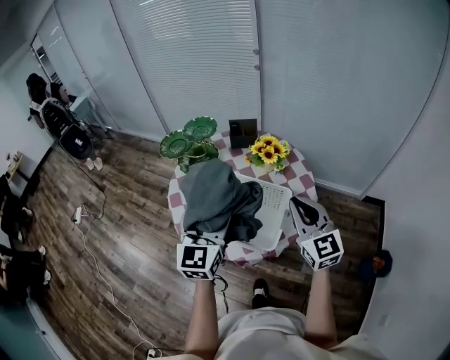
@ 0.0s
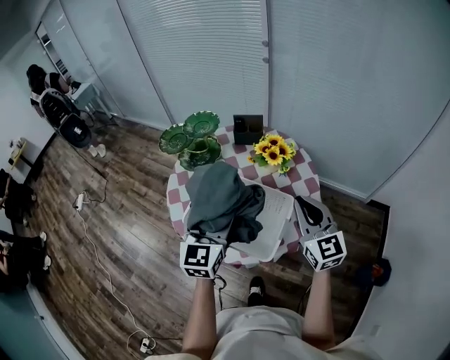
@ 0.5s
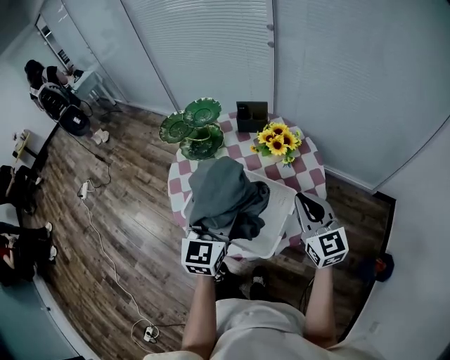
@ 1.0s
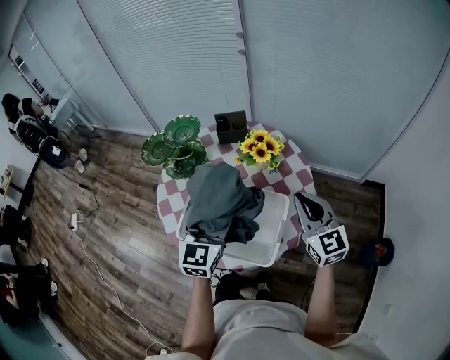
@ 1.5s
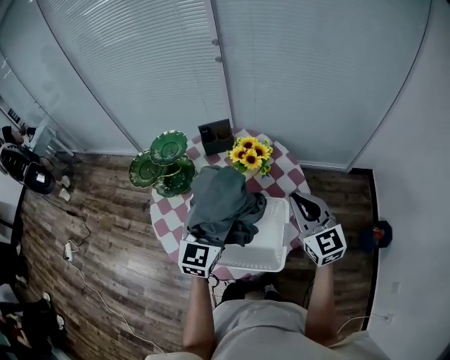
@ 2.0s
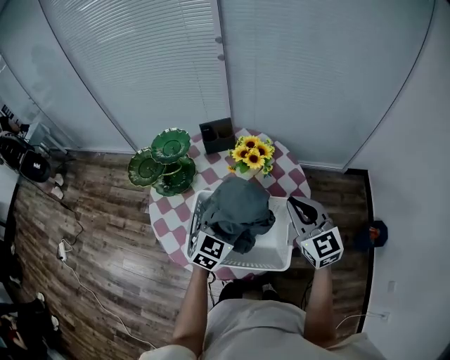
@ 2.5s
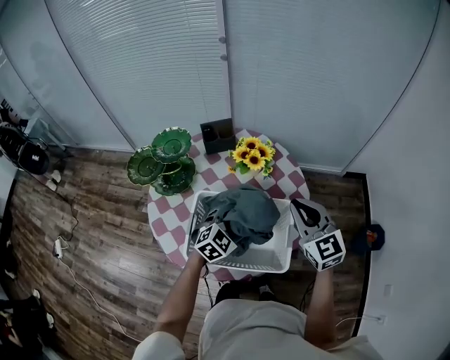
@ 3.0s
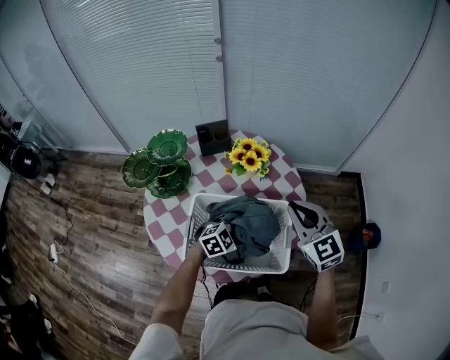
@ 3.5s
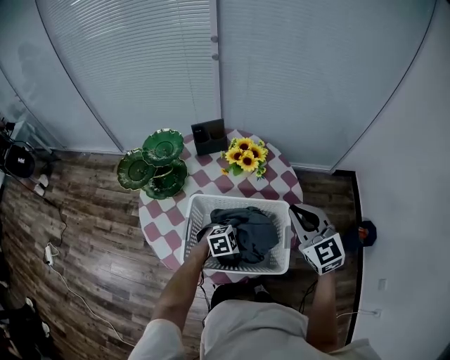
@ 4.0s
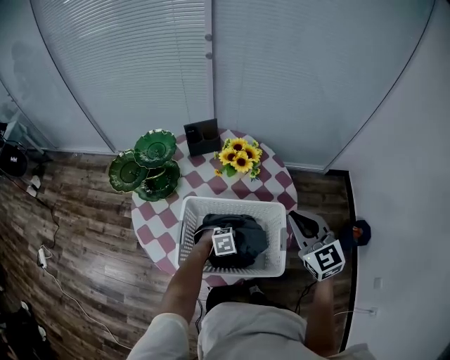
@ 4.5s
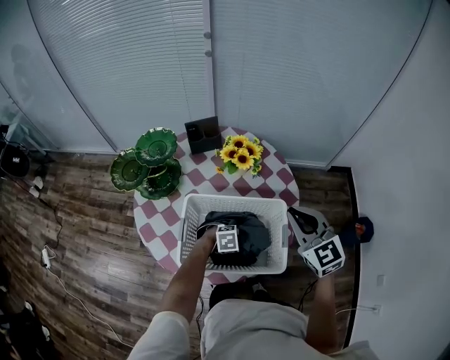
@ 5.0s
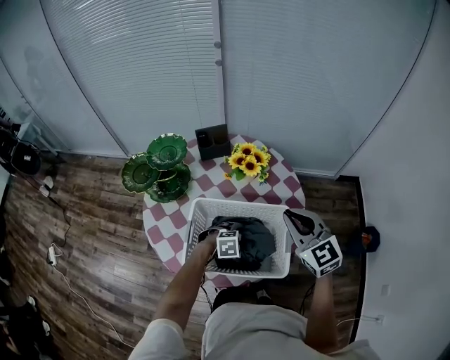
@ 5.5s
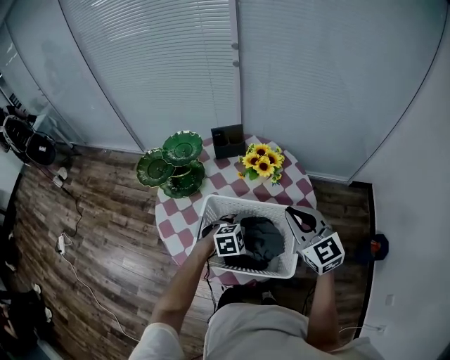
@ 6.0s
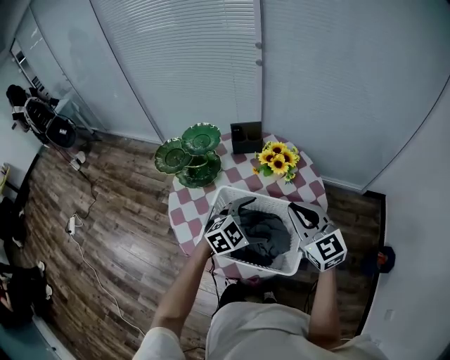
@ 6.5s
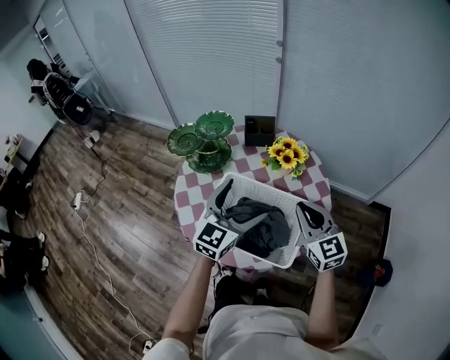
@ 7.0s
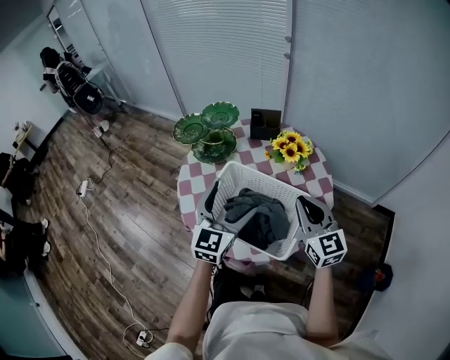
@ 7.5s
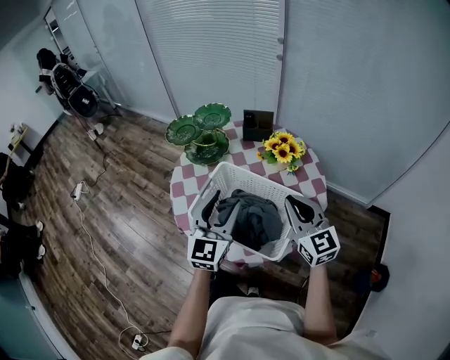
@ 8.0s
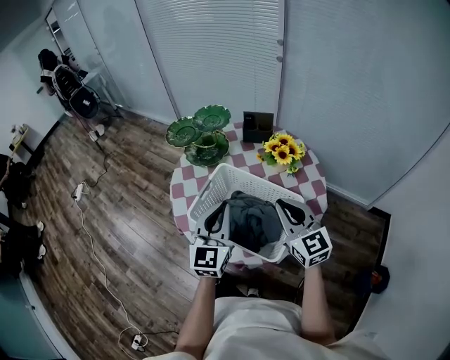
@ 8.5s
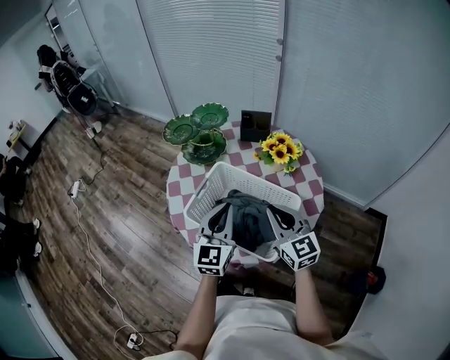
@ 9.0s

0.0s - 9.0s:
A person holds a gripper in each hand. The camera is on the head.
0.0s - 2.0s: The right gripper moves forward, approximately 10 cm. Meanwhile the left gripper goes approximately 15 cm forward and downward, and turns by approximately 20 degrees.
2.0s - 4.5s: The left gripper heads downward, covering approximately 35 cm, and points its fingers roughly 50 degrees further downward.
4.5s - 7.0s: The left gripper heads upward, covering some 35 cm, angles its fingers upward, by some 60 degrees, and opens.
7.0s - 9.0s: The left gripper heads downward and backward, covering about 5 cm, rotates approximately 30 degrees, and closes its fingers. Meanwhile the right gripper ends up some 5 cm from where it was.

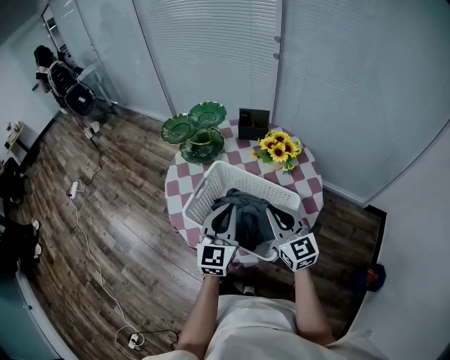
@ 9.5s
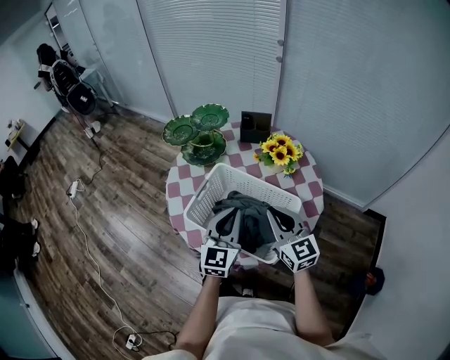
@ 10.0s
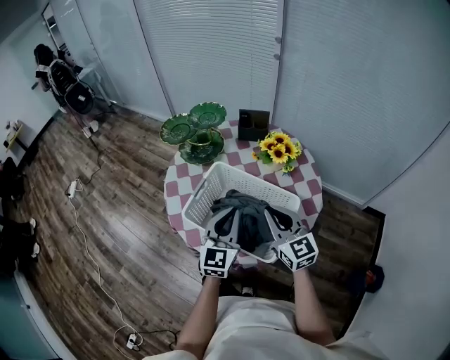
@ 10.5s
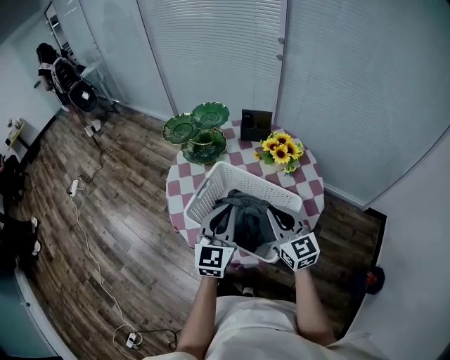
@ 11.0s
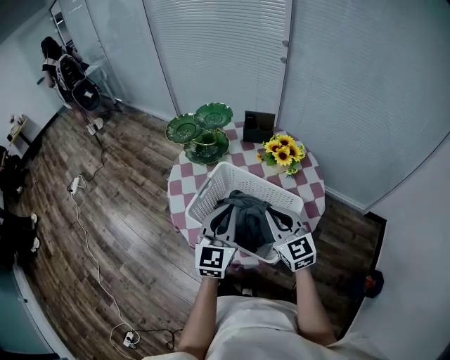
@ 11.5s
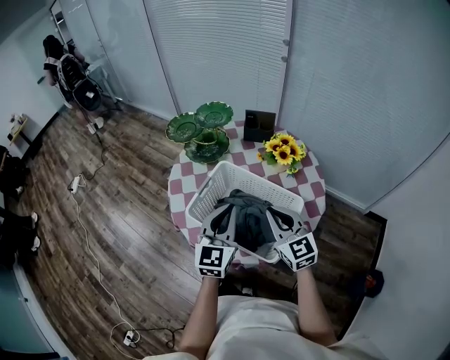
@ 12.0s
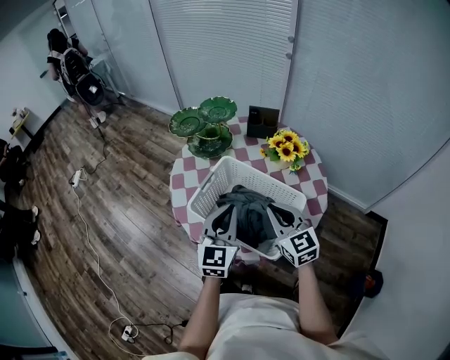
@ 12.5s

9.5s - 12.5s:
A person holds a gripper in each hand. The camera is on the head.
9.5s - 12.5s: The grippers move only a little.

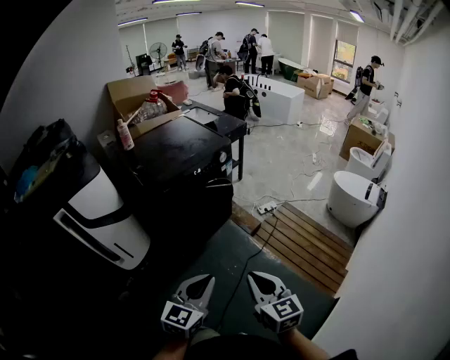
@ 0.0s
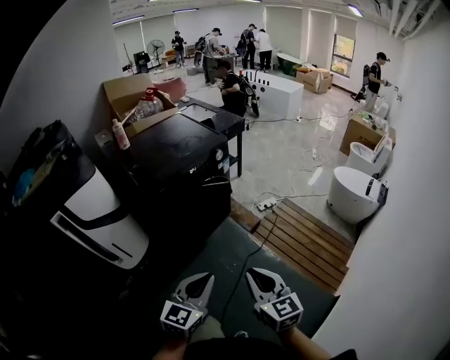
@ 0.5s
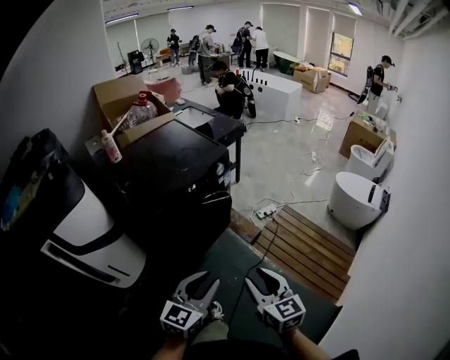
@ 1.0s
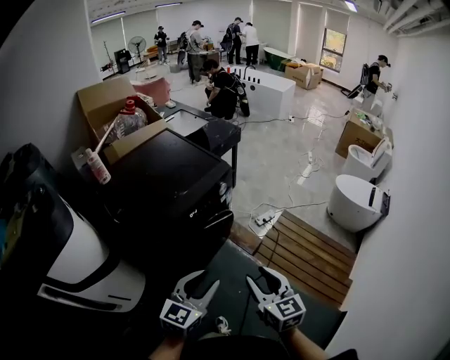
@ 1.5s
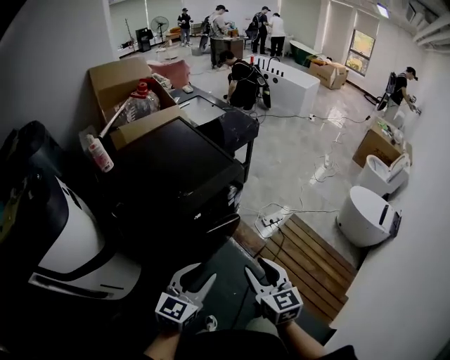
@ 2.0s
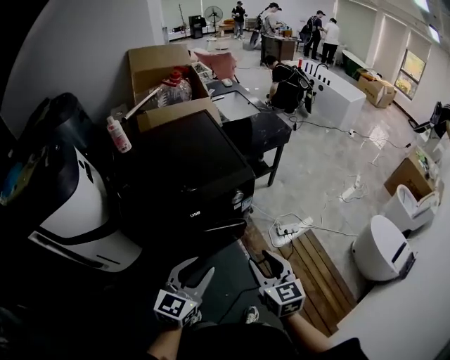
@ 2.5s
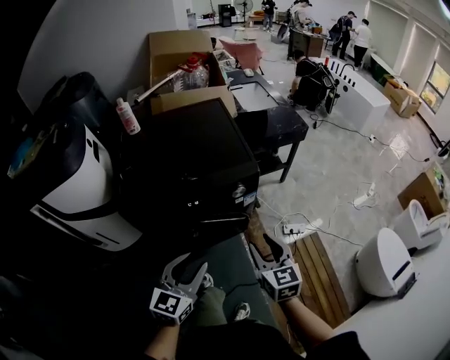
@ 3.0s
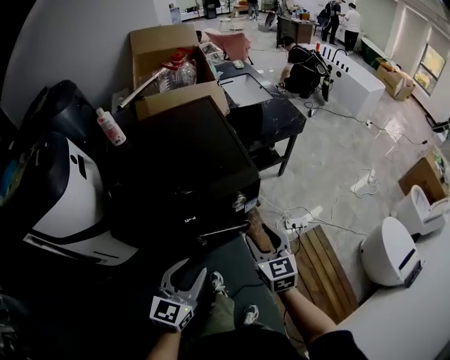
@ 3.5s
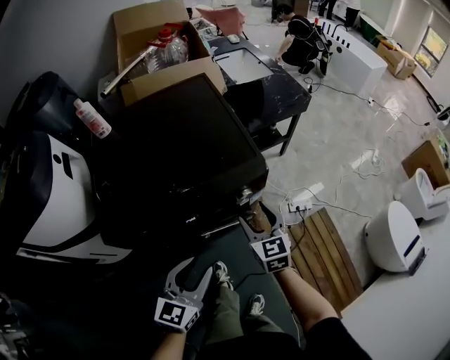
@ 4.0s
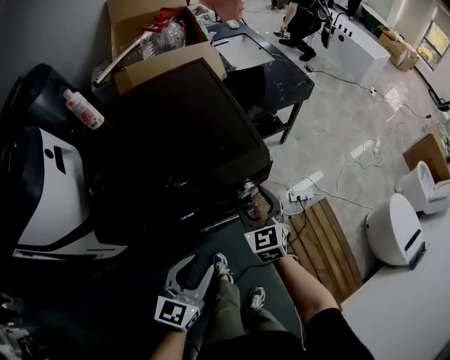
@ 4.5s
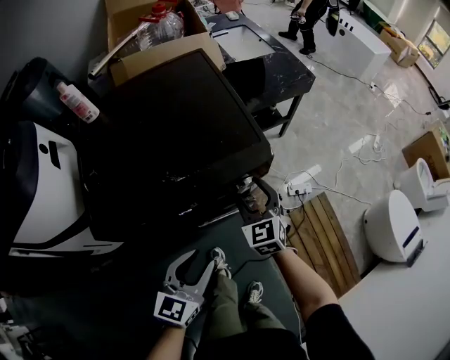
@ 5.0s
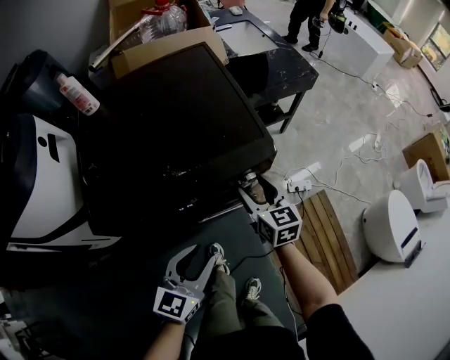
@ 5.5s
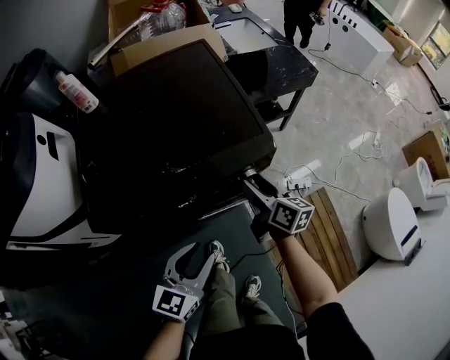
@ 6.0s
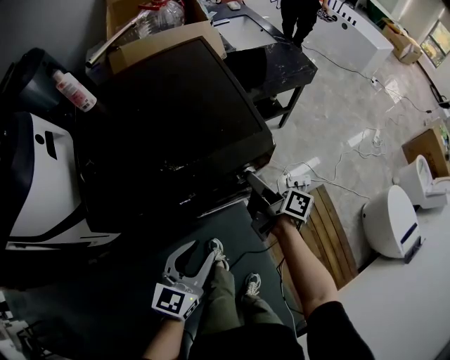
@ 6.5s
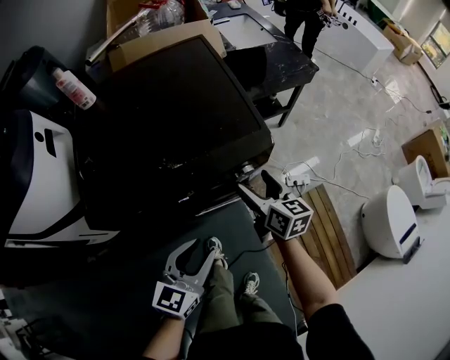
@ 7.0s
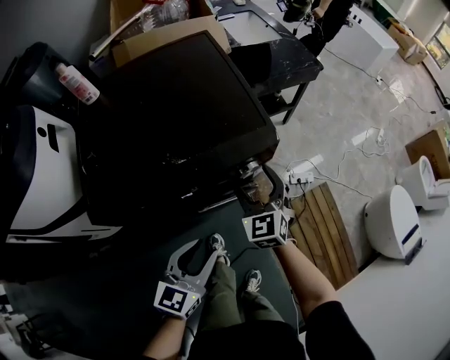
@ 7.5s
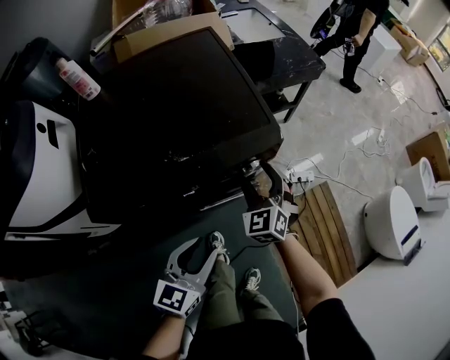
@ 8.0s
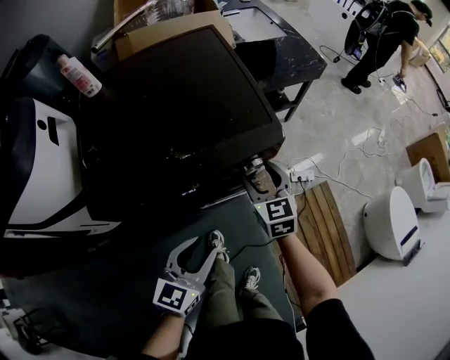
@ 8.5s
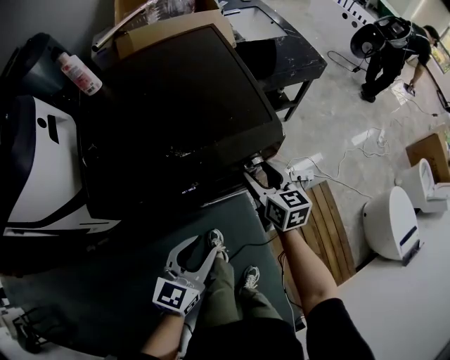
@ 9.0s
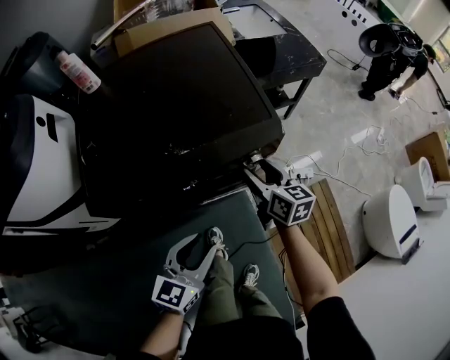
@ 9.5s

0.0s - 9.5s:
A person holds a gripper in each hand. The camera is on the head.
0.0s - 2.0s: Both grippers travel together forward, roughly 40 cm. The right gripper opens its fingers; the left gripper opens up.
2.0s - 4.0s: The right gripper moves approximately 30 cm, and swivels approximately 20 degrees. Meanwhile the left gripper shifts by approximately 15 cm, and swivels some 30 degrees.
4.0s - 5.5s: The right gripper moves some 5 cm.
5.5s - 7.5s: The right gripper turns by about 30 degrees.
7.5s - 9.5s: The right gripper twists roughly 50 degrees clockwise, seen from behind.

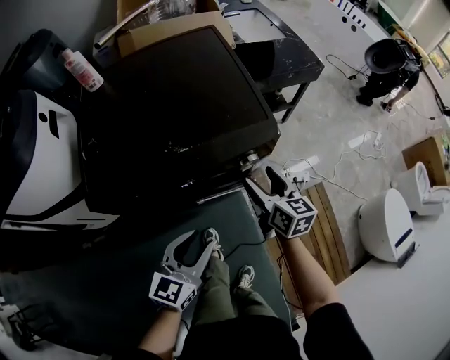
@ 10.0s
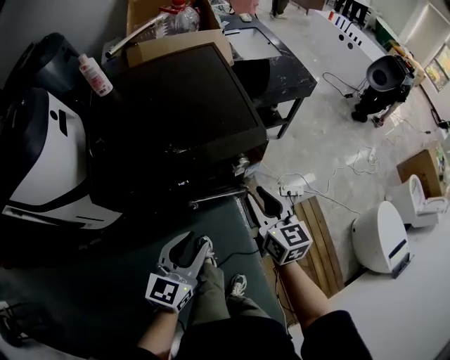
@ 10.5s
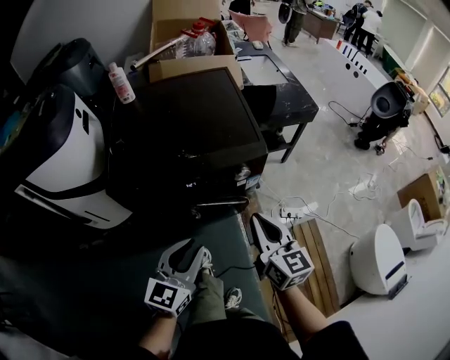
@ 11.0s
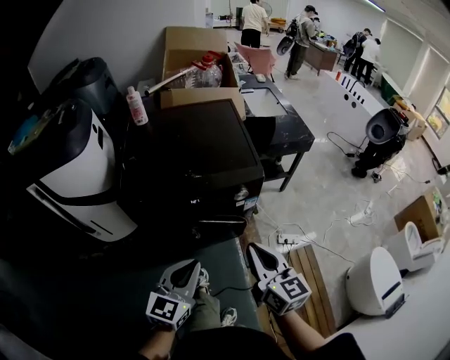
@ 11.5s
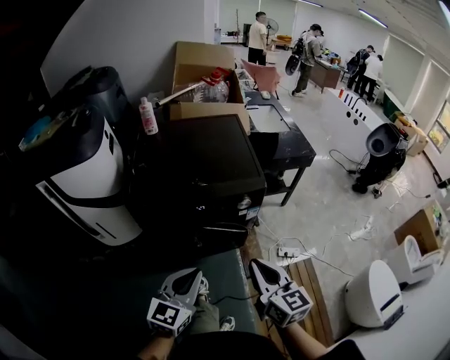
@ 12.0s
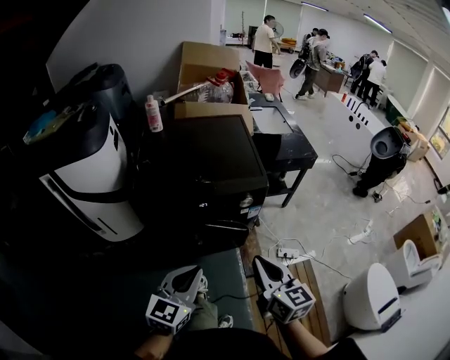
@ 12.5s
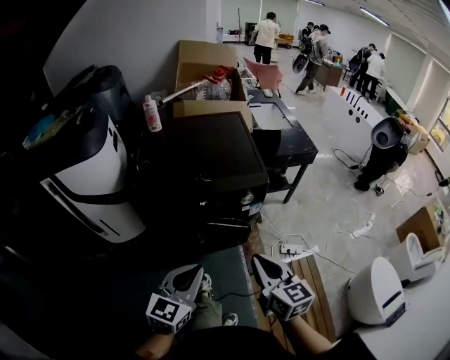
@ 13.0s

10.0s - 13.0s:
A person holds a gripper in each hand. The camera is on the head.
10.0s - 11.5s: The left gripper goes roughly 15 cm backward and upward, and closes up, while the right gripper goes roughly 30 cm backward and upward, and closes.
11.5s - 13.0s: The left gripper changes place by some 5 cm. Meanwhile the right gripper heads backward, covering about 5 cm.

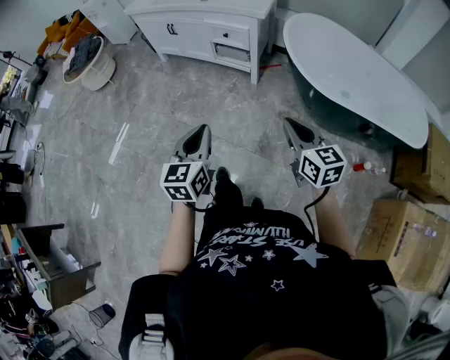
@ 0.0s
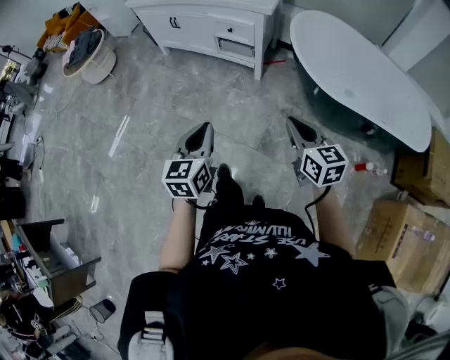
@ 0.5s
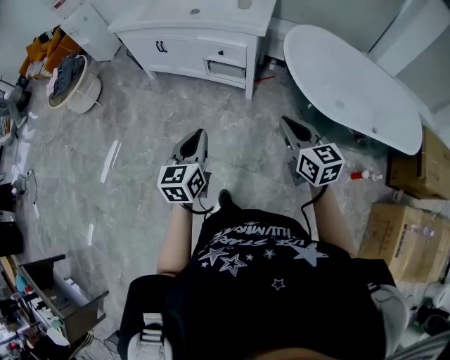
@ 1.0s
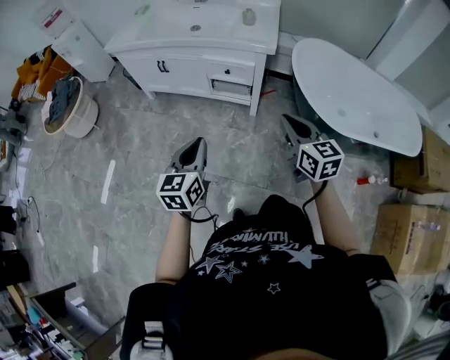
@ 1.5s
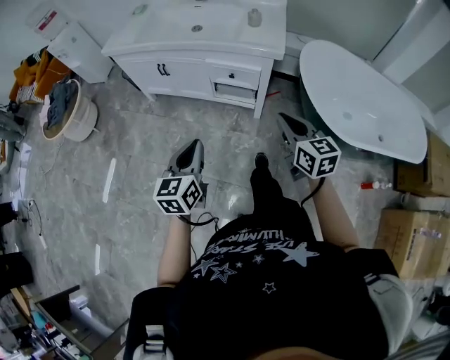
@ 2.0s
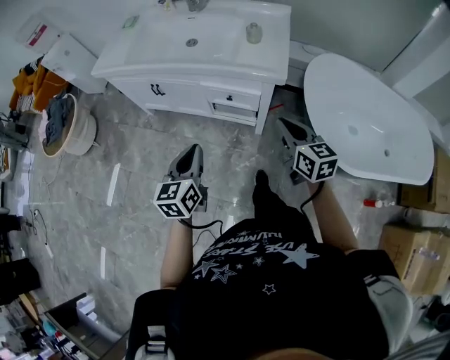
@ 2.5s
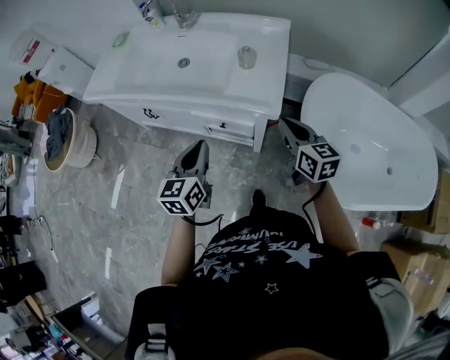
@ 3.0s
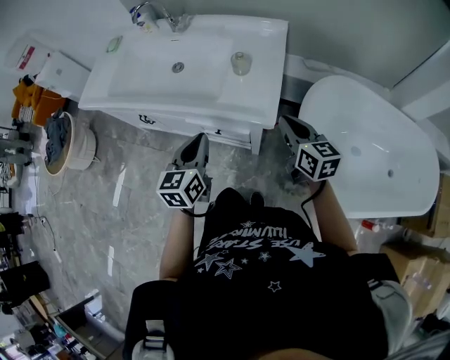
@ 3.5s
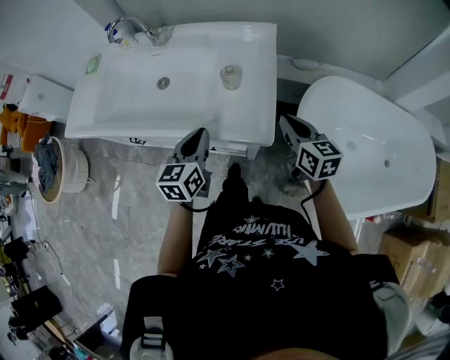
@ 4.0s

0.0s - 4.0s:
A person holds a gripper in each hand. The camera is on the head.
0.0s - 2.0s: Both grippers travel together forward and to the left, roughly 40 cm.
2.0s - 4.0s: The pair of grippers is taken forward, roughly 50 cm.
